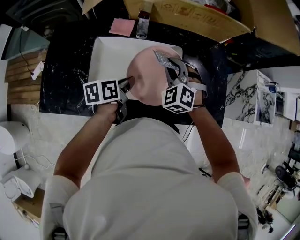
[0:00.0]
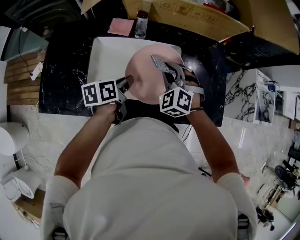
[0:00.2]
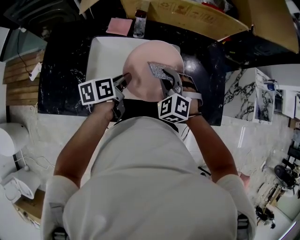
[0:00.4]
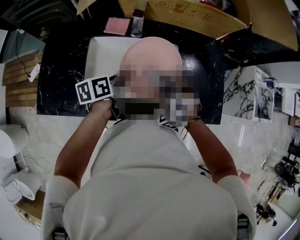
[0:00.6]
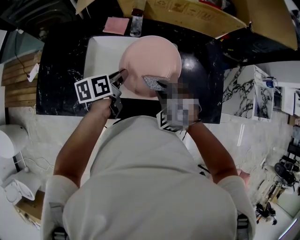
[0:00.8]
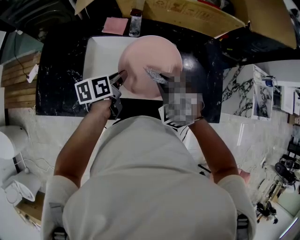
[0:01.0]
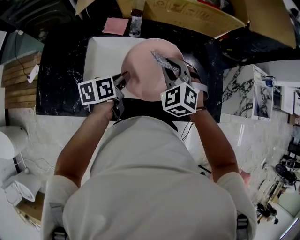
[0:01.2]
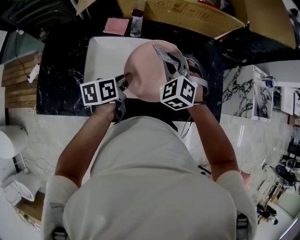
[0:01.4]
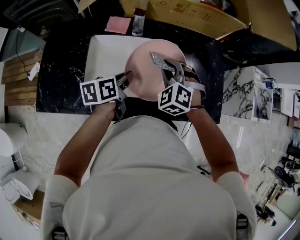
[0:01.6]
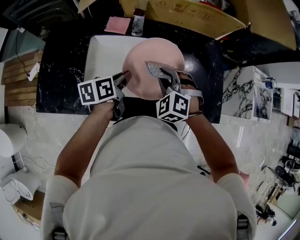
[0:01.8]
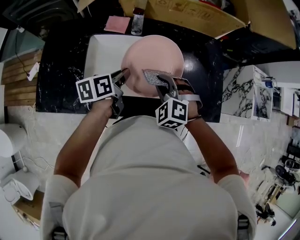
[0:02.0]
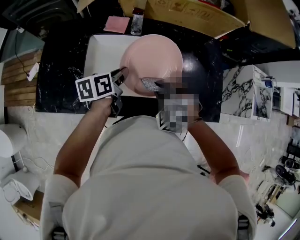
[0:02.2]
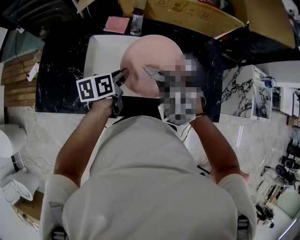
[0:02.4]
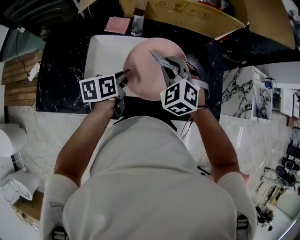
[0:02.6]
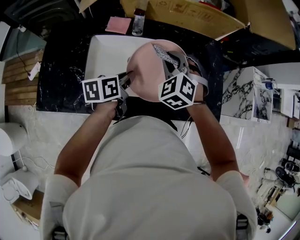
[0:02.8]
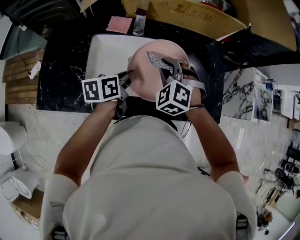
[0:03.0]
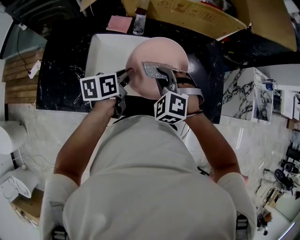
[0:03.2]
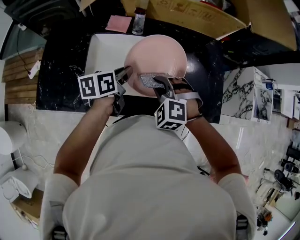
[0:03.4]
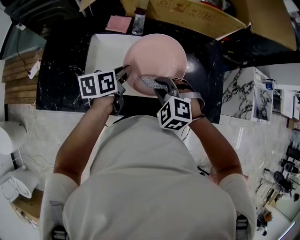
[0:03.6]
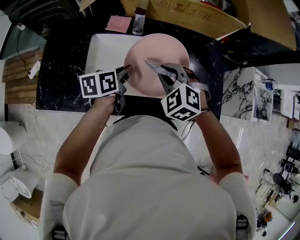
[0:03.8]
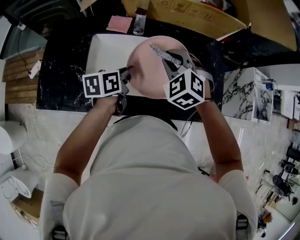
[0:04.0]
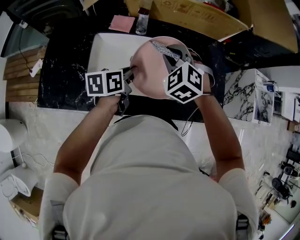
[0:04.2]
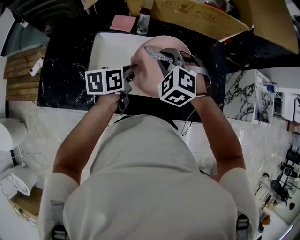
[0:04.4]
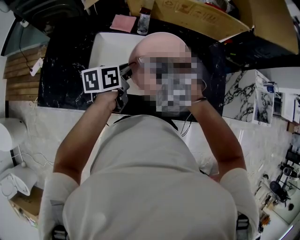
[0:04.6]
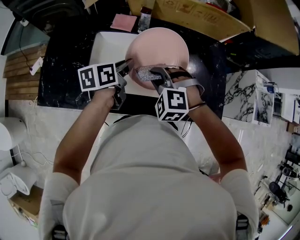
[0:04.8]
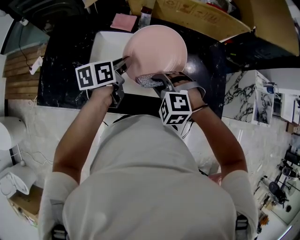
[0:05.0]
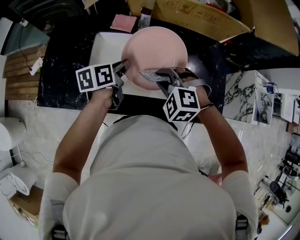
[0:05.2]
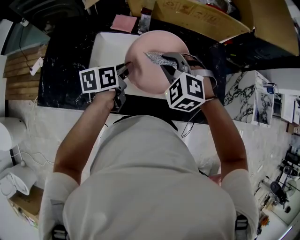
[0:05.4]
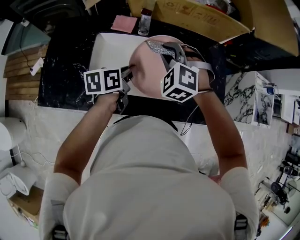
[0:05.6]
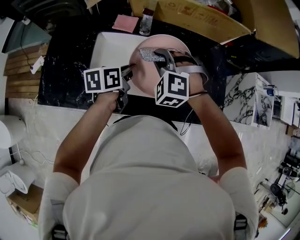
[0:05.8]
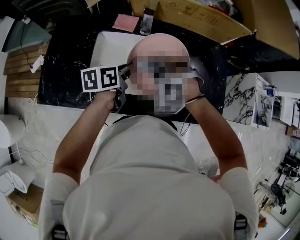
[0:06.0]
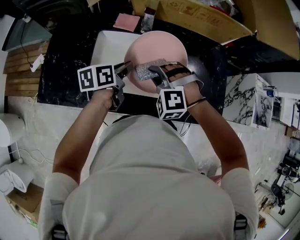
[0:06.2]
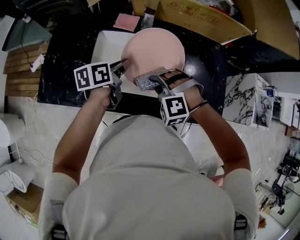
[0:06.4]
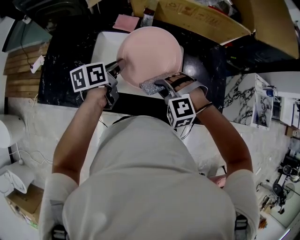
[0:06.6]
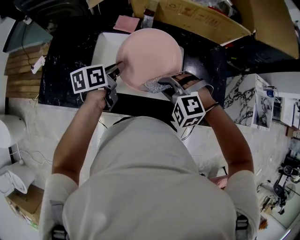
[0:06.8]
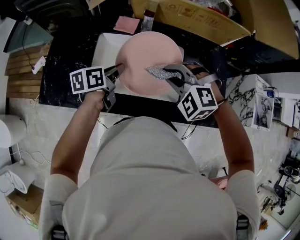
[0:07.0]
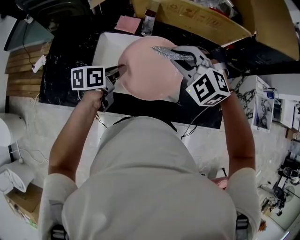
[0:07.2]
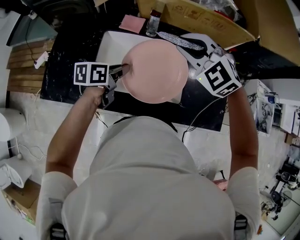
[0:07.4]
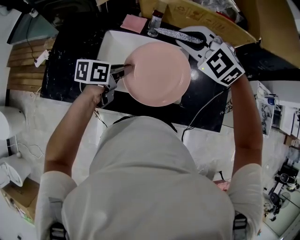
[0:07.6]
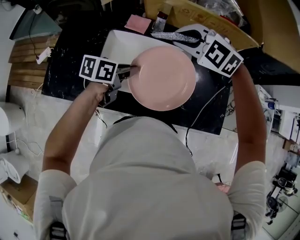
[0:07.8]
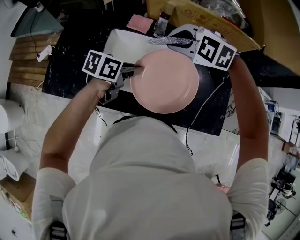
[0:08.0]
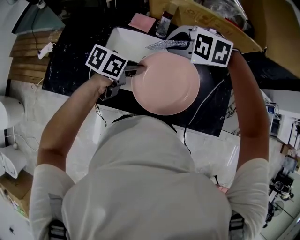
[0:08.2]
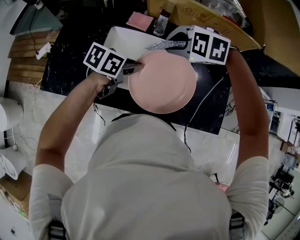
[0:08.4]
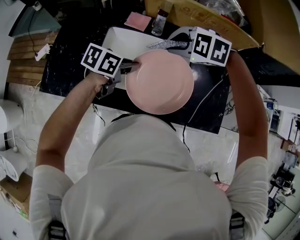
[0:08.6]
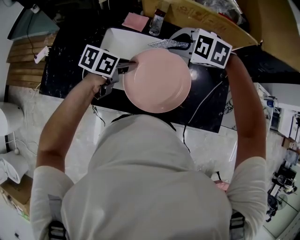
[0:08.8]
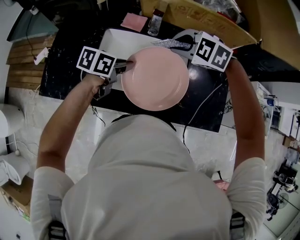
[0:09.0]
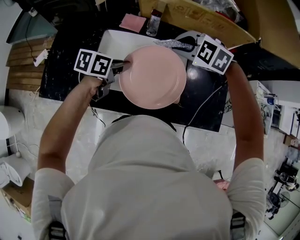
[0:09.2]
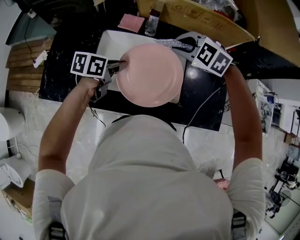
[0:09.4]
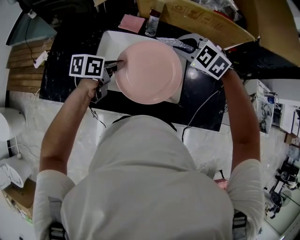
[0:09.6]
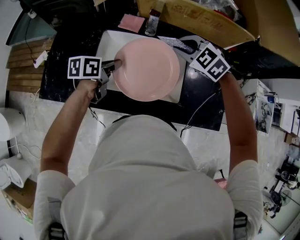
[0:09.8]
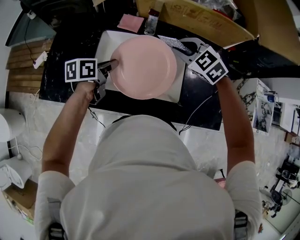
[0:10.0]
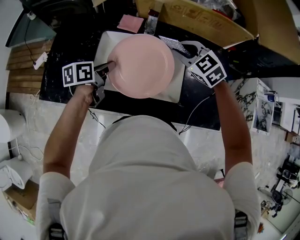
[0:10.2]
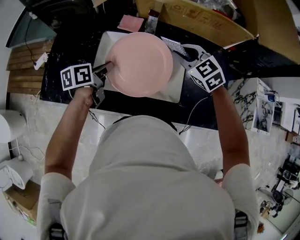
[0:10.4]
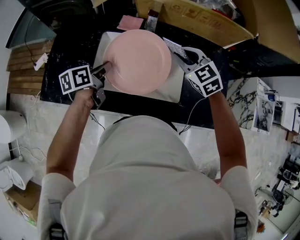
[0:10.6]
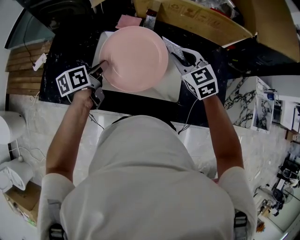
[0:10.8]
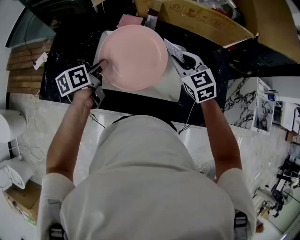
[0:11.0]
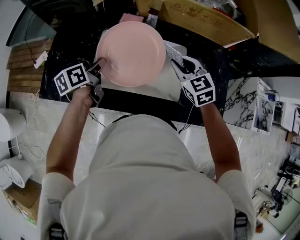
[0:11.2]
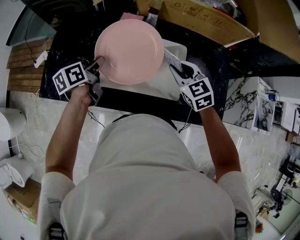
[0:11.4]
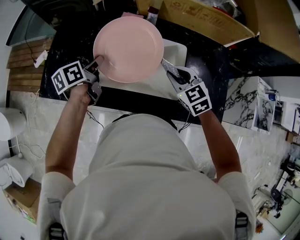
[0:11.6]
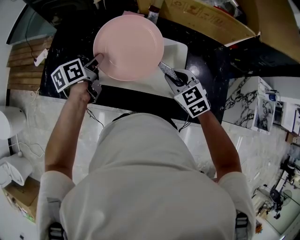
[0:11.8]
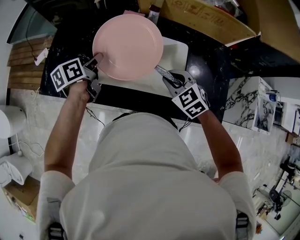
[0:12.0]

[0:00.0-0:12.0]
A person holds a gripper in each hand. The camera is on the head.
0:00.0 to 0:01.6: The right gripper goes backward and returns, some 10 cm each way.
0:01.6 to 0:03.0: The right gripper goes backward and returns, roughly 10 cm each way.
0:03.0 to 0:04.4: The right gripper moves about 10 cm backward and comes back.
0:04.4 to 0:06.0: The right gripper swings forward and backward, about 10 cm each way, with 2 reversals, and turns by approximately 20 degrees.
0:06.0 to 0:07.6: The right gripper goes roughly 15 cm upward and forward, and turns by approximately 30 degrees.
0:07.6 to 0:09.0: The right gripper goes some 5 cm downward, and changes its angle by some 20 degrees.
0:09.0 to 0:10.4: The right gripper turns by some 40 degrees. Meanwhile the left gripper ends up about 10 cm from where it was, and changes its angle by about 30 degrees.
0:10.4 to 0:12.0: The right gripper heads backward and downward, covering roughly 15 cm.

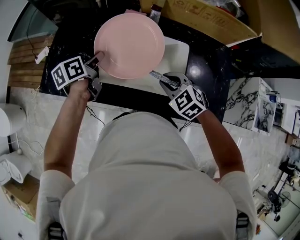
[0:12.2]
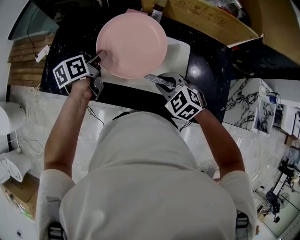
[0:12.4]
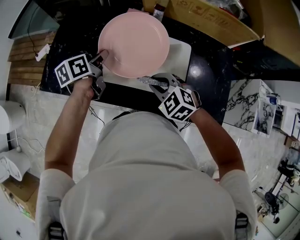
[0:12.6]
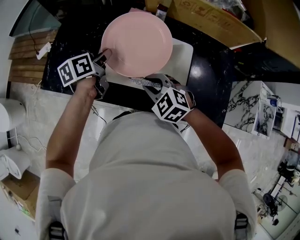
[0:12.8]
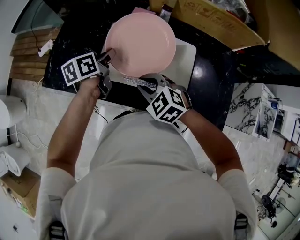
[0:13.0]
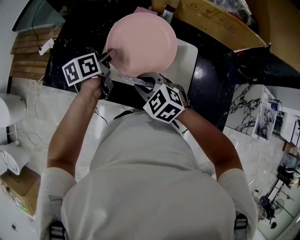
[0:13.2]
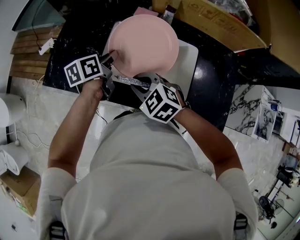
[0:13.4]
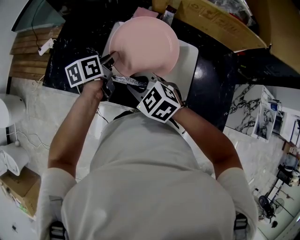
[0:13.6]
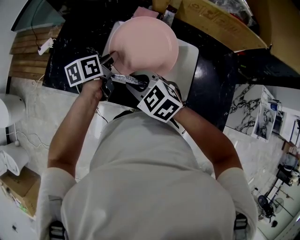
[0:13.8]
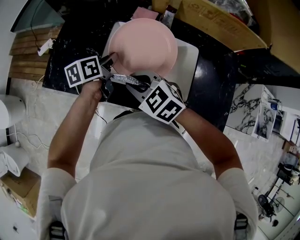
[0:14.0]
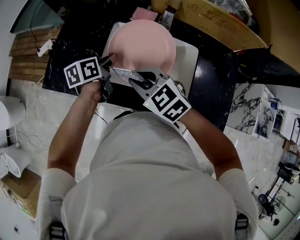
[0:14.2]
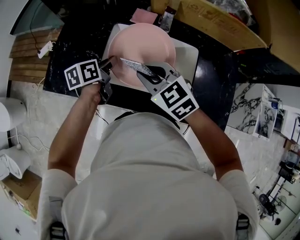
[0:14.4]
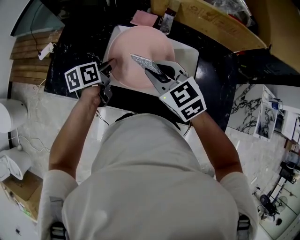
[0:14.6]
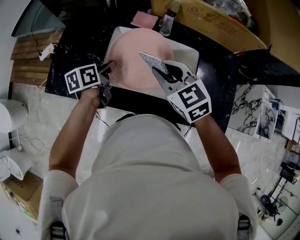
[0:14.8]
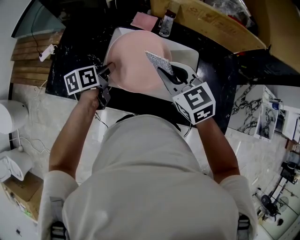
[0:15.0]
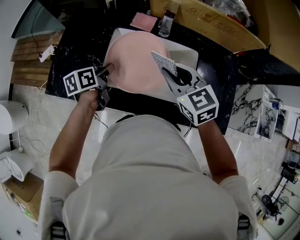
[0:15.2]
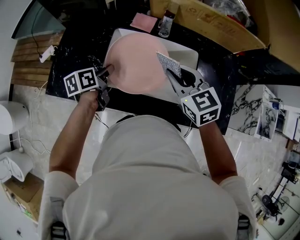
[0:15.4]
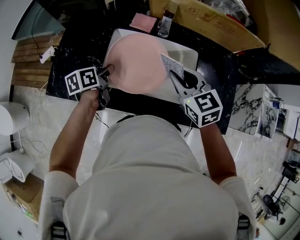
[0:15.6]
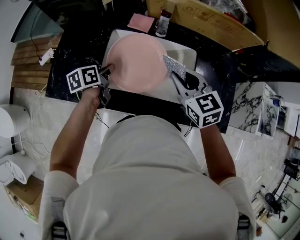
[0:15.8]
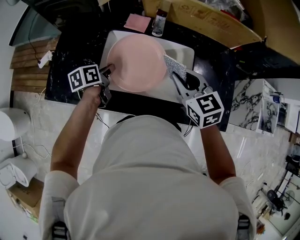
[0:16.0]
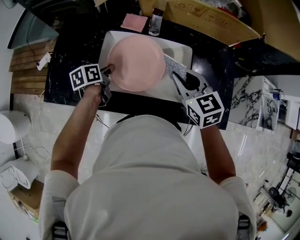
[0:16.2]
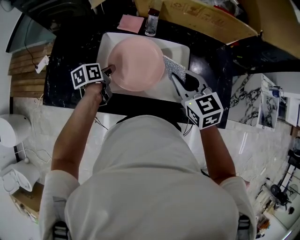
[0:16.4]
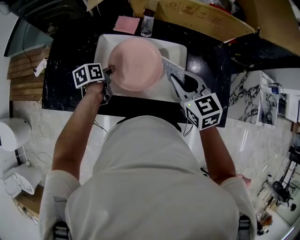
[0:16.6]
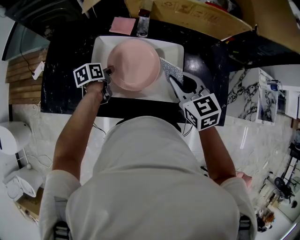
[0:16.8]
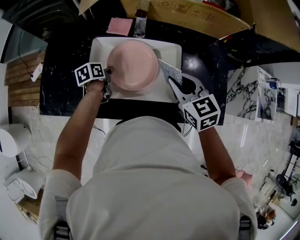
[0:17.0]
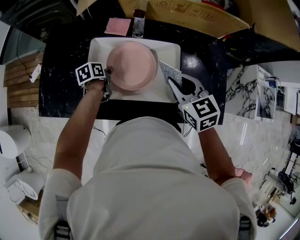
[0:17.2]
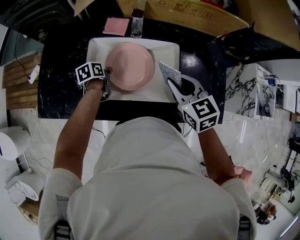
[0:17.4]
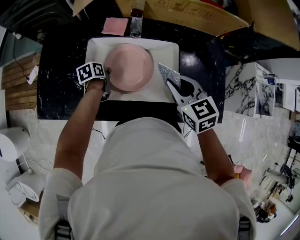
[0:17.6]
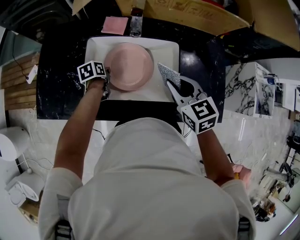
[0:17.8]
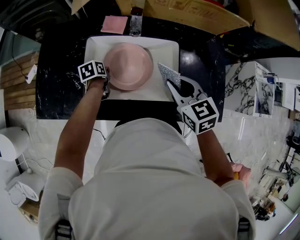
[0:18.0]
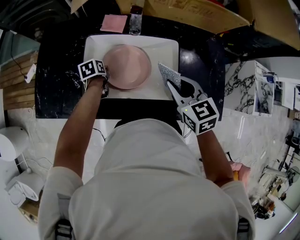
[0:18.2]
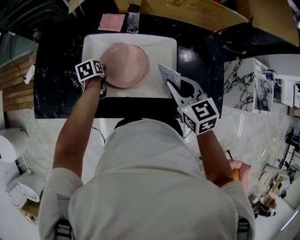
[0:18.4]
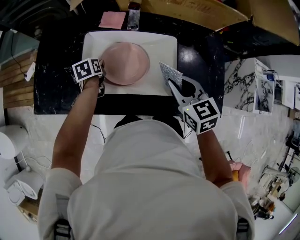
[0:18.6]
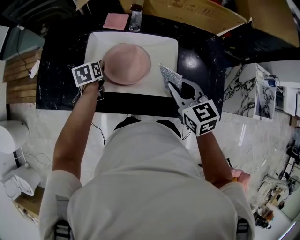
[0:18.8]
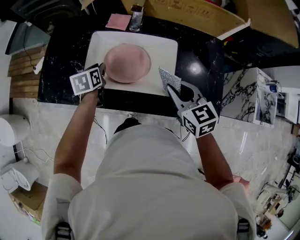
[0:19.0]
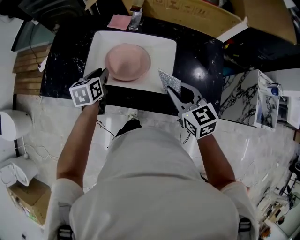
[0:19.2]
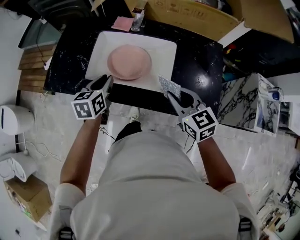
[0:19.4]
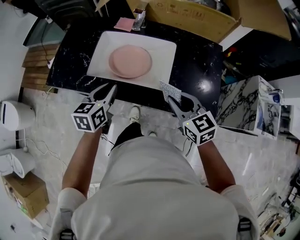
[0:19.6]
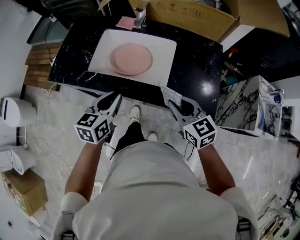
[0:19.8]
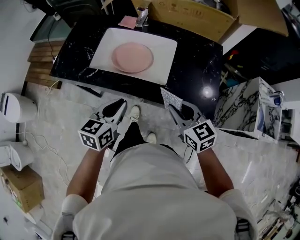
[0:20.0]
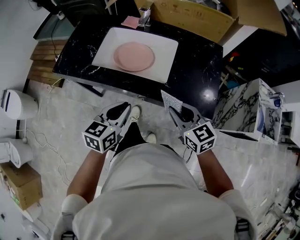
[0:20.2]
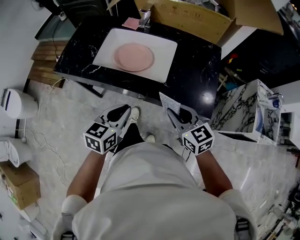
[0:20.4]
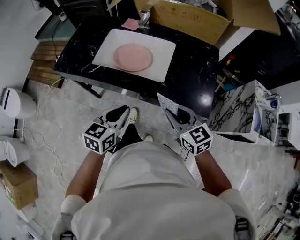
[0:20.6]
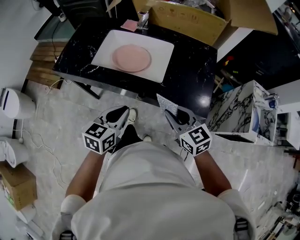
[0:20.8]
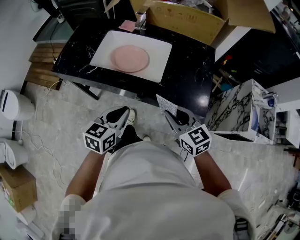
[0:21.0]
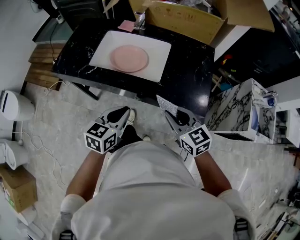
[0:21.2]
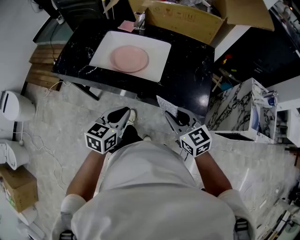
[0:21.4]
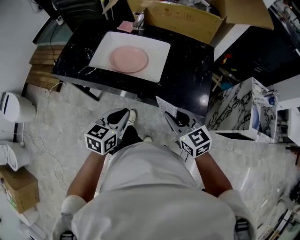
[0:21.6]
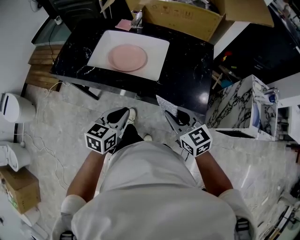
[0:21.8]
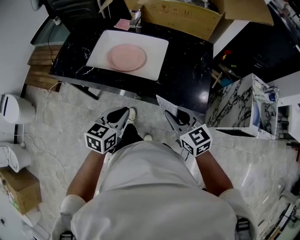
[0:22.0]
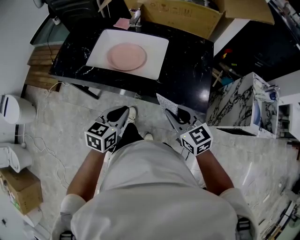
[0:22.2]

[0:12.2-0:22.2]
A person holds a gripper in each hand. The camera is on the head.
0:12.2 to 0:13.6: The right gripper heads to the left, covering about 15 cm.
0:13.6 to 0:15.0: The right gripper moves to the right, upward and forward, about 15 cm, and turns by some 30 degrees.
0:15.0 to 0:16.4: The left gripper goes roughly 5 cm downward, while the right gripper heads to the right, covering roughly 10 cm.
0:16.4 to 0:18.0: The left gripper travels downward by roughly 10 cm.
0:18.0 to 0:19.4: The left gripper is displaced upward and backward by approximately 25 cm, and swivels about 40 degrees. The right gripper travels backward by about 10 cm.
0:19.4 to 0:20.8: The left gripper goes approximately 25 cm backward, while the right gripper shifts about 15 cm backward.
0:20.8 to 0:22.2: The grippers stay close to where they were, moving slightly.

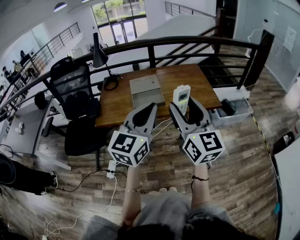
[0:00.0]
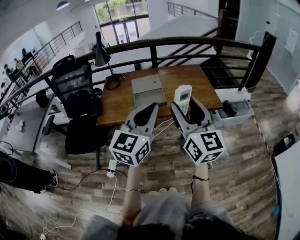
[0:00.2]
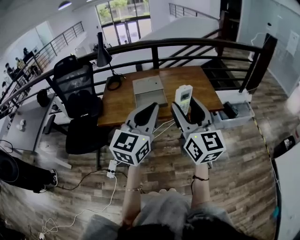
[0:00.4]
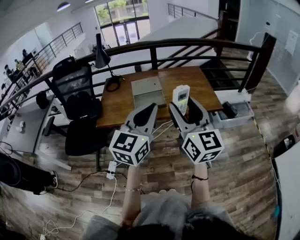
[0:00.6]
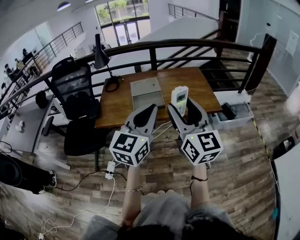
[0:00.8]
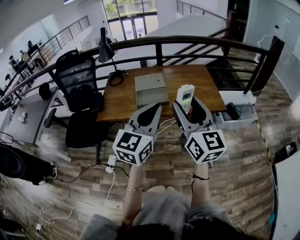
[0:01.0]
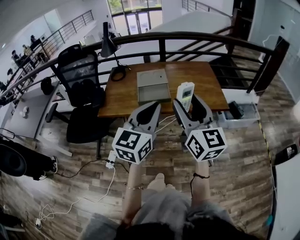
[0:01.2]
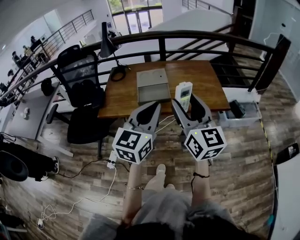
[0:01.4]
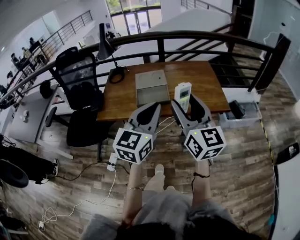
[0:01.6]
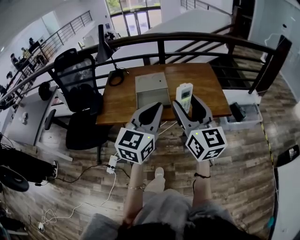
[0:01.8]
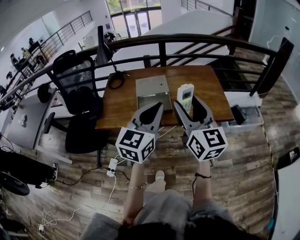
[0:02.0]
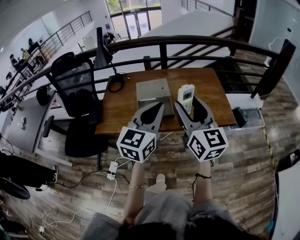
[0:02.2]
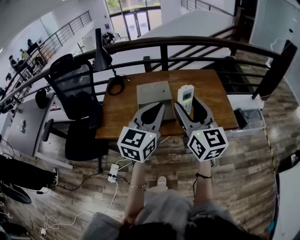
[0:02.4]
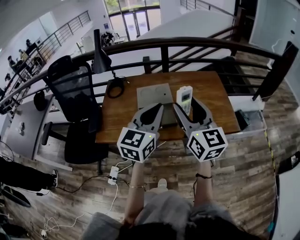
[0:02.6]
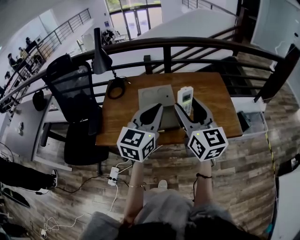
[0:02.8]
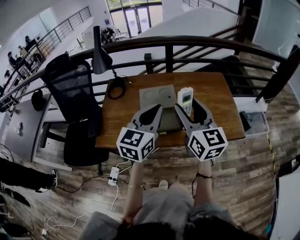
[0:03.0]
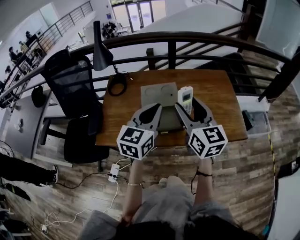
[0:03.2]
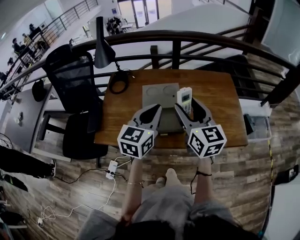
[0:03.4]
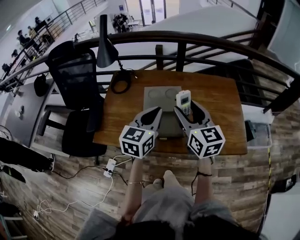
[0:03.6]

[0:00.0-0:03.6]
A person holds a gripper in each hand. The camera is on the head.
0:00.0 to 0:01.8: Both grippers move forward, roughly 10 cm.
0:01.8 to 0:03.6: The grippers both shift forward by approximately 30 cm.
